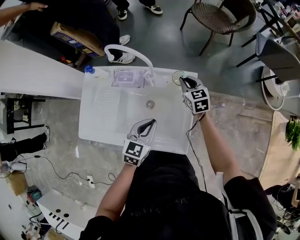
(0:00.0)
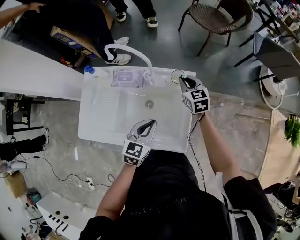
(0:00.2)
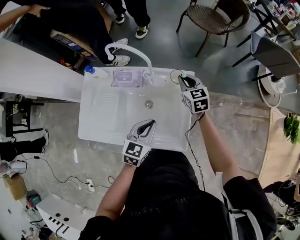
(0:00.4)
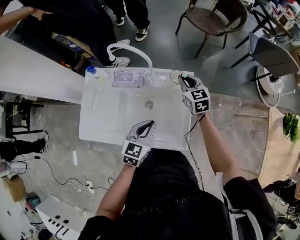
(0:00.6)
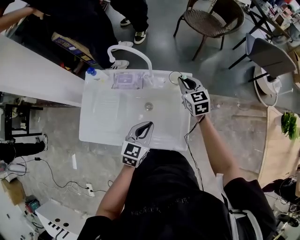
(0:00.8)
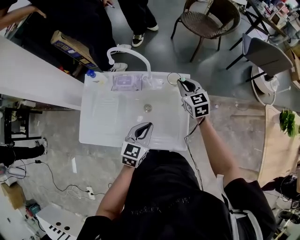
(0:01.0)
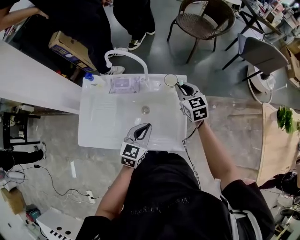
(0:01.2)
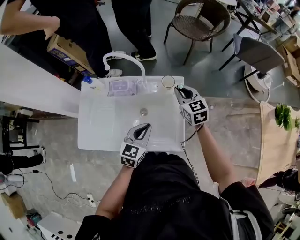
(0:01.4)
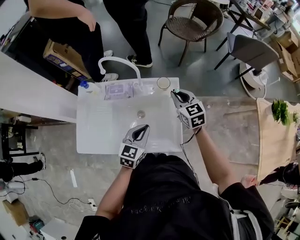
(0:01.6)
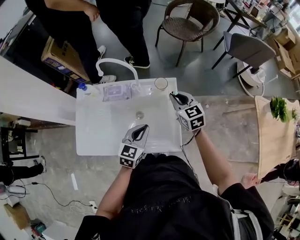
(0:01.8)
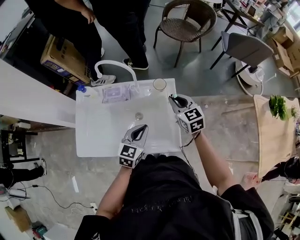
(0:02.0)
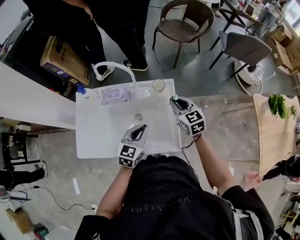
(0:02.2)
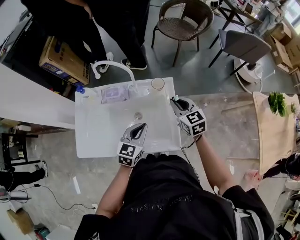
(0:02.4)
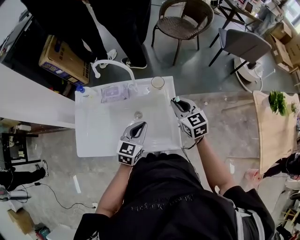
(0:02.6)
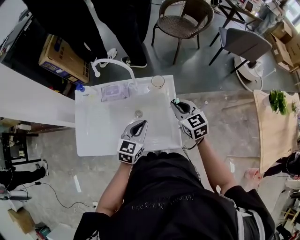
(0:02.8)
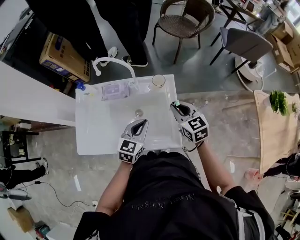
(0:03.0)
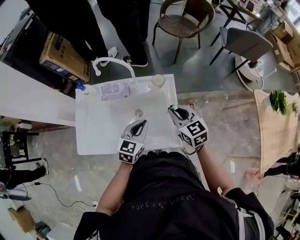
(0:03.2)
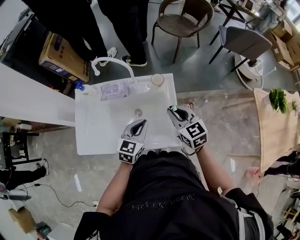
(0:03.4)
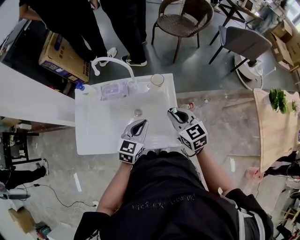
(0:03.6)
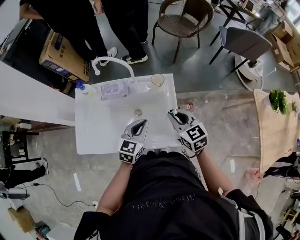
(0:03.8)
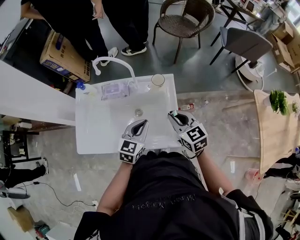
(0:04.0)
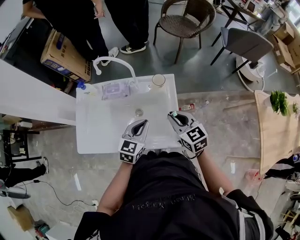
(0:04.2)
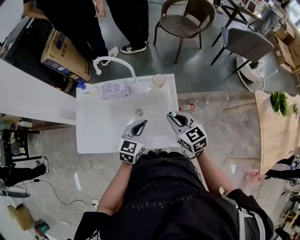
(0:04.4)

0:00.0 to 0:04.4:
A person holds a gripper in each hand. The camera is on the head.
0:00.0 to 0:01.4: The right gripper travels upward and backward by roughly 10 cm.
0:01.4 to 0:03.0: The right gripper moves backward, about 10 cm.
0:03.0 to 0:04.4: The right gripper changes place by some 5 cm.

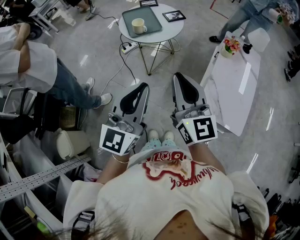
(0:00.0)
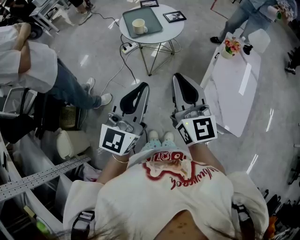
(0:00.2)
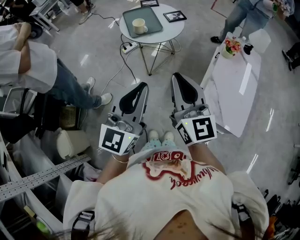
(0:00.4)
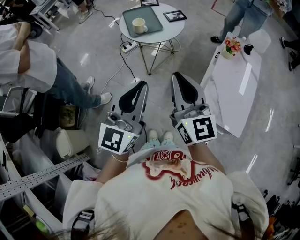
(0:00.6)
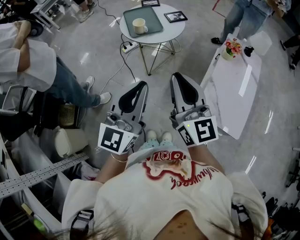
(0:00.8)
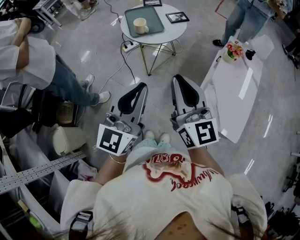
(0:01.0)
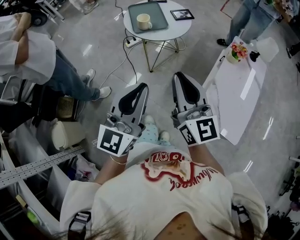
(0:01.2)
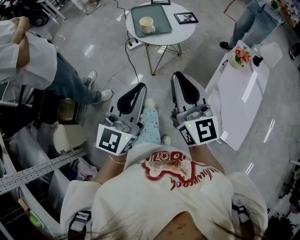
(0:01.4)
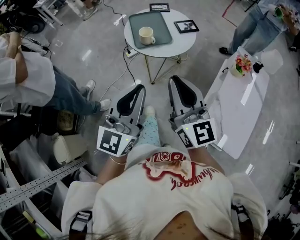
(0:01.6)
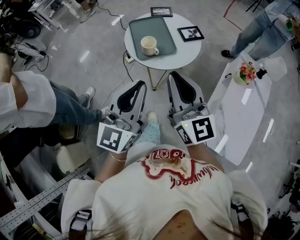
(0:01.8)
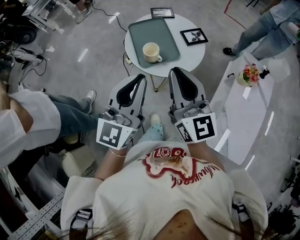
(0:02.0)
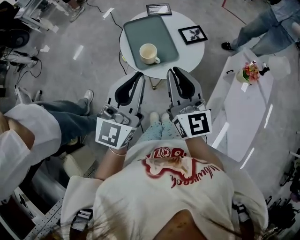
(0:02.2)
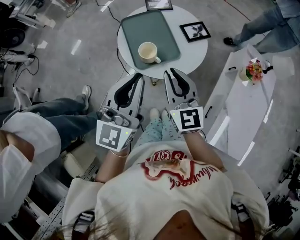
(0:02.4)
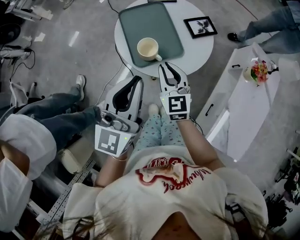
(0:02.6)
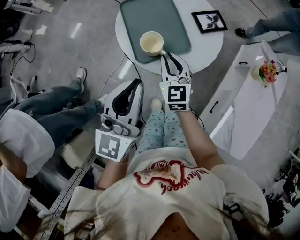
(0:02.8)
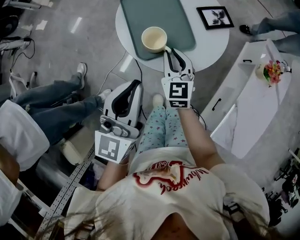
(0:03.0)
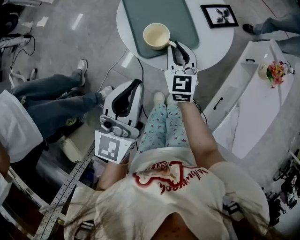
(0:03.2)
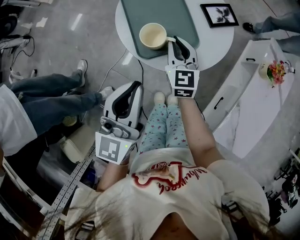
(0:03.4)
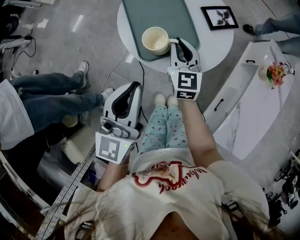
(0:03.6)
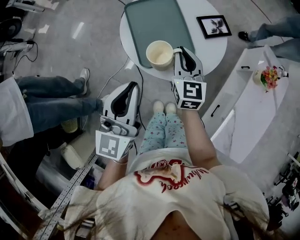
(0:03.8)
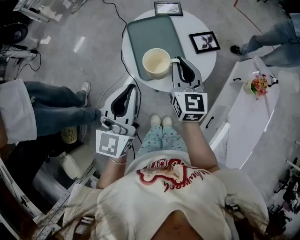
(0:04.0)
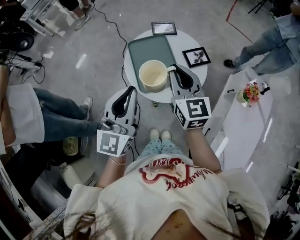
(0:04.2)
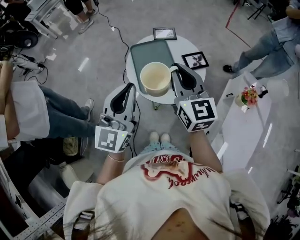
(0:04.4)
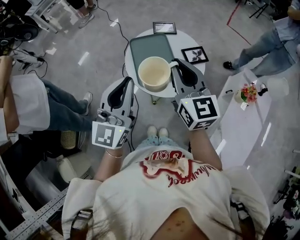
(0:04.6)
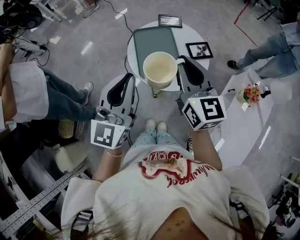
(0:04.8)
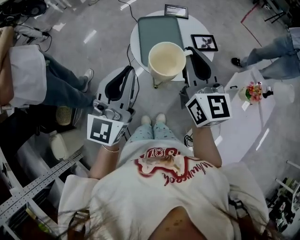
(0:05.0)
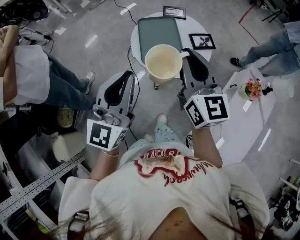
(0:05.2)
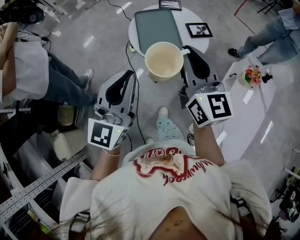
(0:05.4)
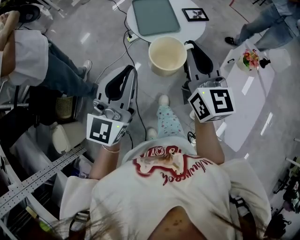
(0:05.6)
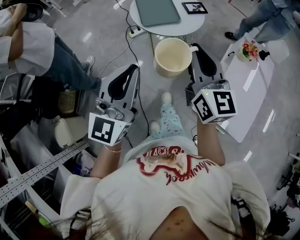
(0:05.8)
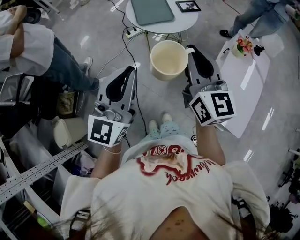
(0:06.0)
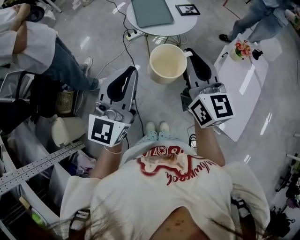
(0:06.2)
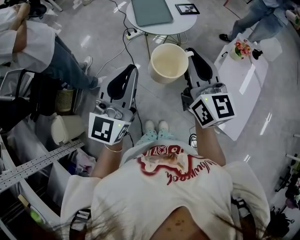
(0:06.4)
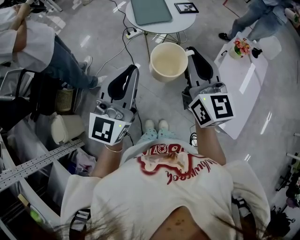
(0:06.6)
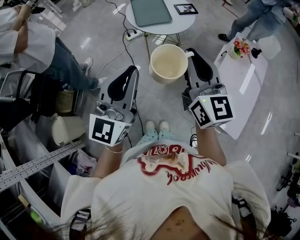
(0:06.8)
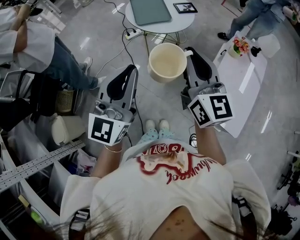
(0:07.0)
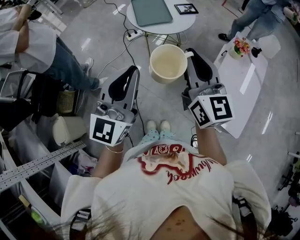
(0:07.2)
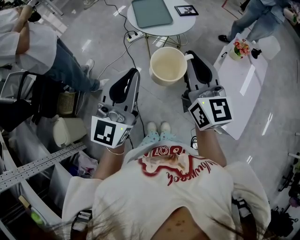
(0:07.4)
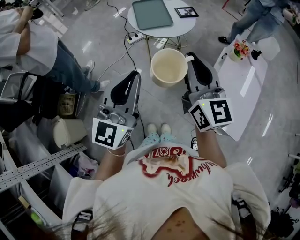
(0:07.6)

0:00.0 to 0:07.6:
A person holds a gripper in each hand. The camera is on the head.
0:00.0 to 0:01.6: Both grippers travel together forward, roughly 15 cm.
0:01.6 to 0:03.0: The right gripper heads forward and downward, covering about 40 cm, and rotates approximately 30 degrees; the left gripper heads forward and downward, covering some 30 cm.
0:03.0 to 0:04.6: The left gripper moves upward, some 15 cm, while the right gripper shifts roughly 30 cm upward, and turns by approximately 20 degrees.
0:04.6 to 0:06.0: Both grippers travel together backward, approximately 35 cm.
0:06.0 to 0:07.6: There are only small adjustments of the grippers.

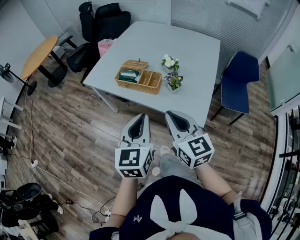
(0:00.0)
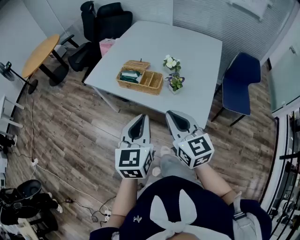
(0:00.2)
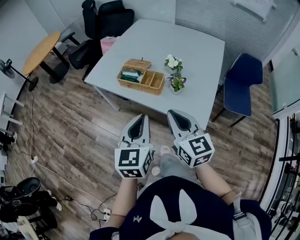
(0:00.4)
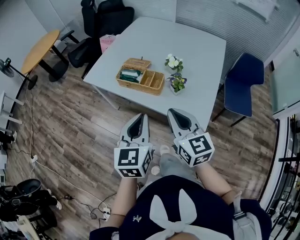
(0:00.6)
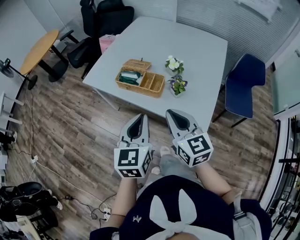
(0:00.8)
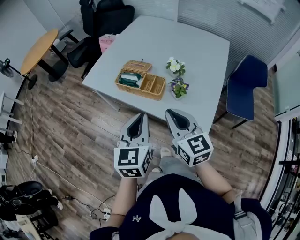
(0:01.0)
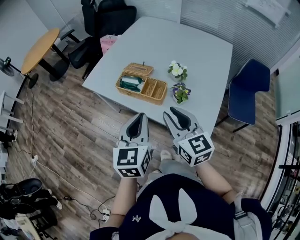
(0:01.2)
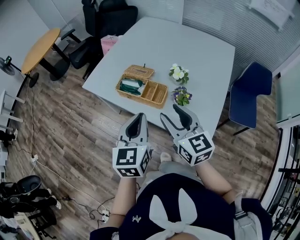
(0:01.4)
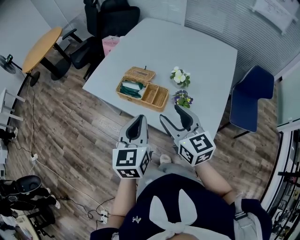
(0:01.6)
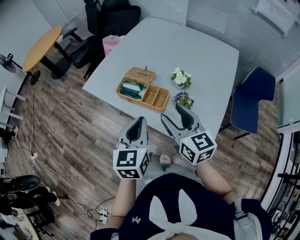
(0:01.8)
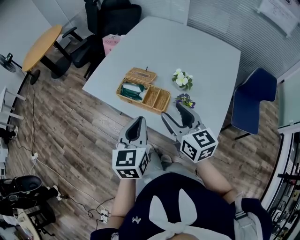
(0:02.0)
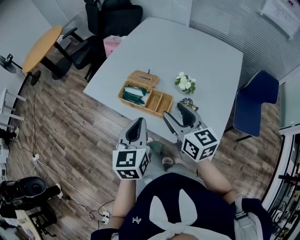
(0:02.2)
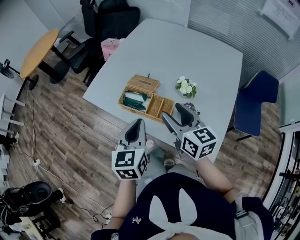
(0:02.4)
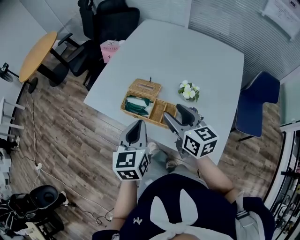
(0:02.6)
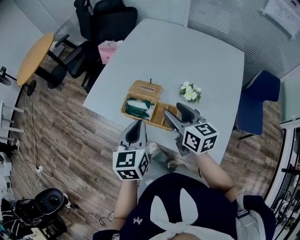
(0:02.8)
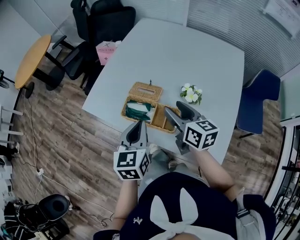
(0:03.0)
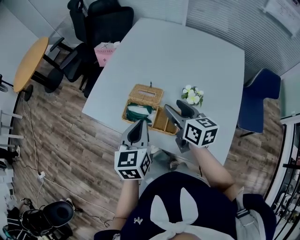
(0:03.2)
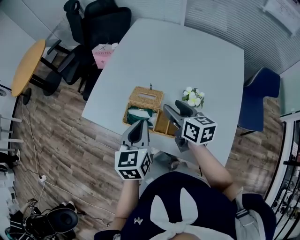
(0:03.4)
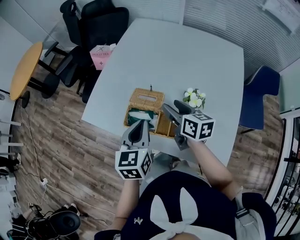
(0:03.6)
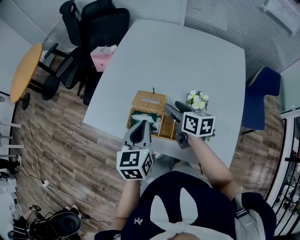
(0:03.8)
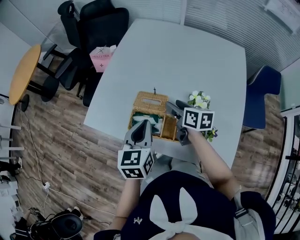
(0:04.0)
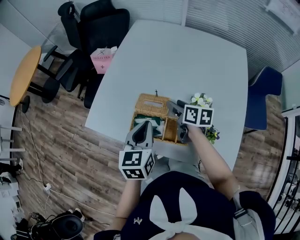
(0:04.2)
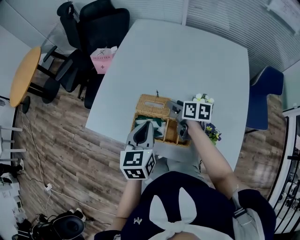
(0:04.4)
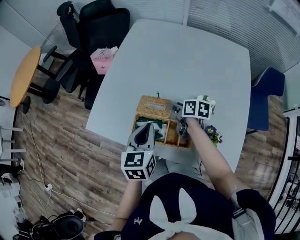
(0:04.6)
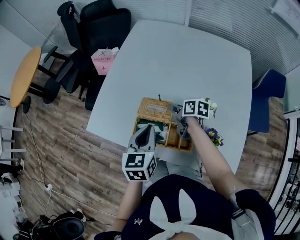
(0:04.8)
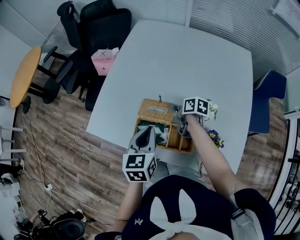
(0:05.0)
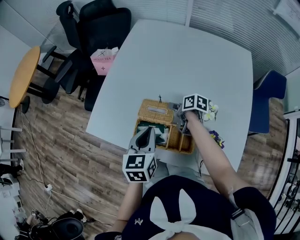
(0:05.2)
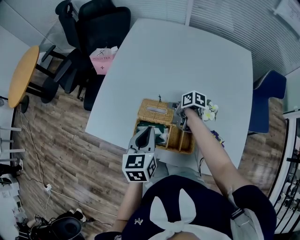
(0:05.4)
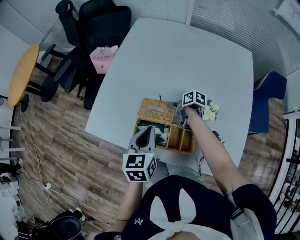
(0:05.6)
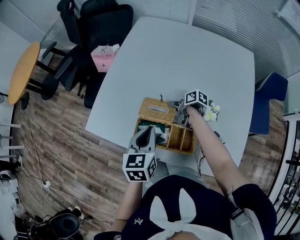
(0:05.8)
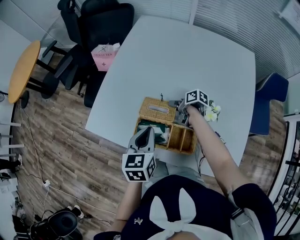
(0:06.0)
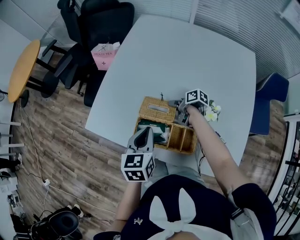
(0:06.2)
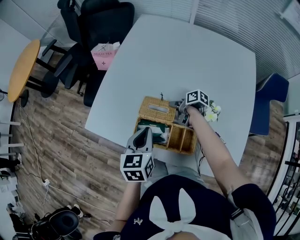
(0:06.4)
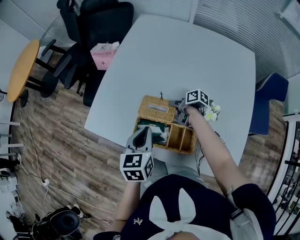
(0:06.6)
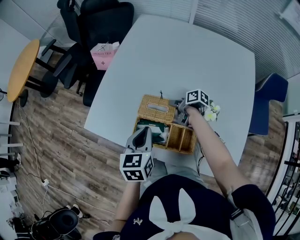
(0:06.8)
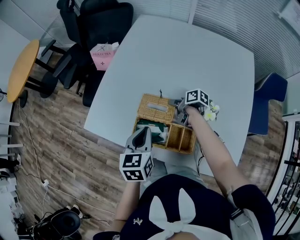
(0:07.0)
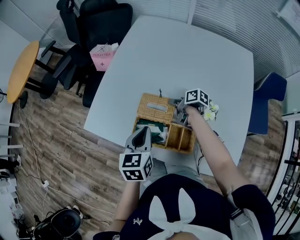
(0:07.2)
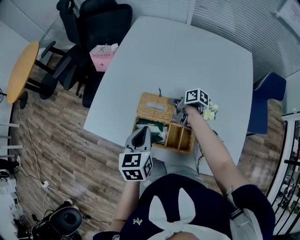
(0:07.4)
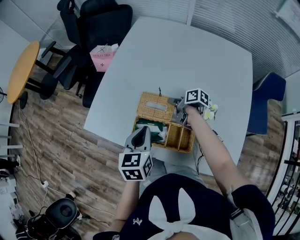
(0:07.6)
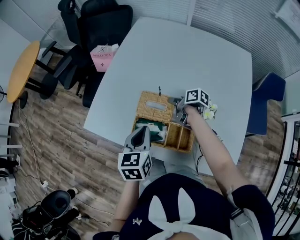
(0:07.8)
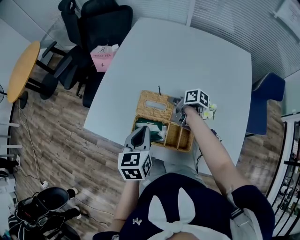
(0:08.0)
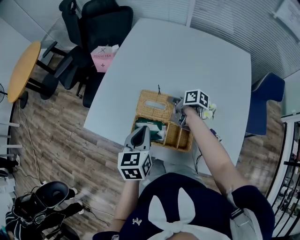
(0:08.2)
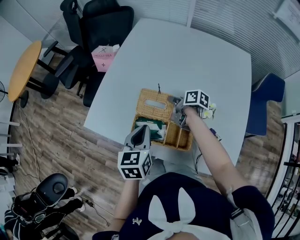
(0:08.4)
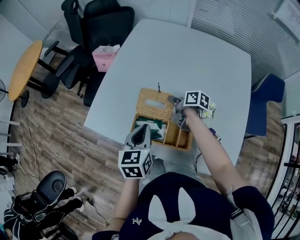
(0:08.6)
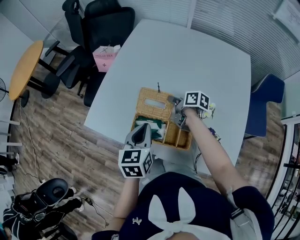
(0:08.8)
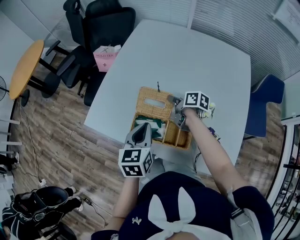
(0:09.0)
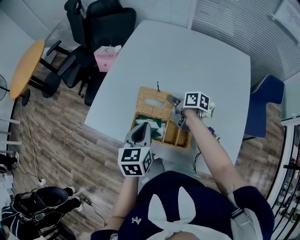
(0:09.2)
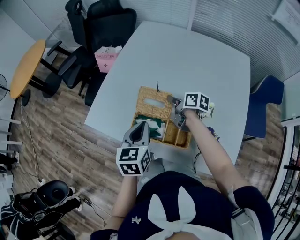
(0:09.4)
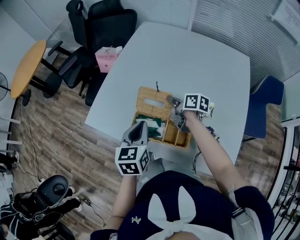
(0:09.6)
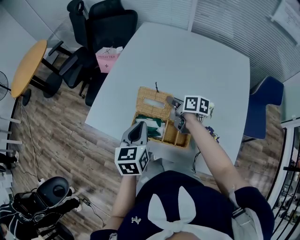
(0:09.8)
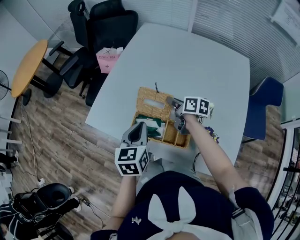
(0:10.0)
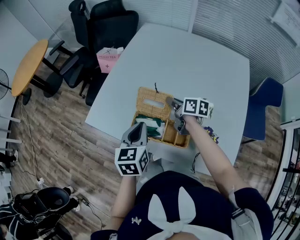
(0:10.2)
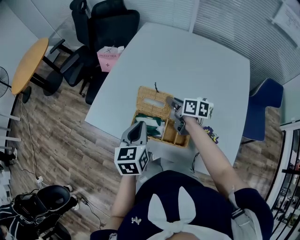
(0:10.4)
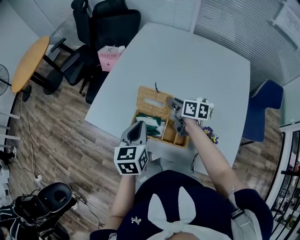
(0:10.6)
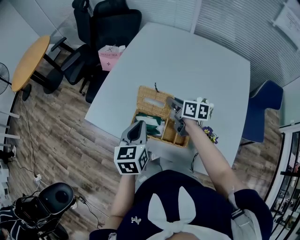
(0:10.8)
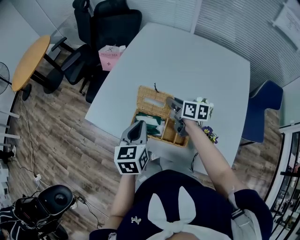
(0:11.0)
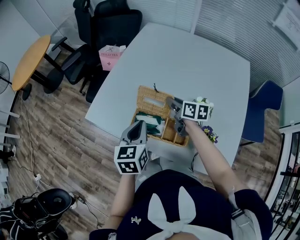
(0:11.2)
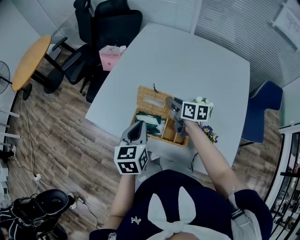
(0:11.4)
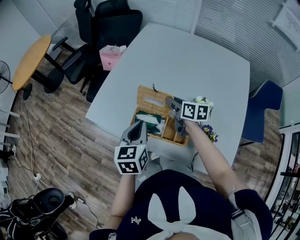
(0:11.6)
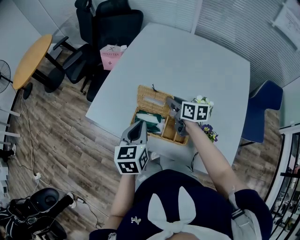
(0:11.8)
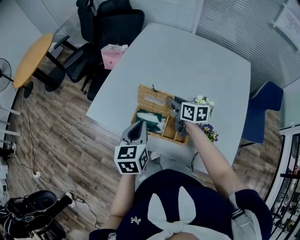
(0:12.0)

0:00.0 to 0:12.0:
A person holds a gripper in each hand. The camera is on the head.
0:00.0 to 0:01.6: Both grippers move forward, about 15 cm. The right gripper opens.
0:01.6 to 0:03.0: The two grippers go approximately 15 cm forward. The right gripper turns by approximately 20 degrees.
0:03.0 to 0:04.4: The left gripper shifts roughly 10 cm forward, while the right gripper is displaced forward and downward by some 20 cm, and rotates about 30 degrees.
0:04.4 to 0:06.0: The right gripper goes some 10 cm downward, and changes its angle by about 30 degrees.
0:06.0 to 0:07.6: The right gripper closes up.
0:07.6 to 0:09.0: There are only small adjustments of the grippers.
0:09.0 to 0:10.4: The grippers stay close to where they were, moving slightly.
0:10.4 to 0:12.0: The grippers stay close to where they were, moving slightly.
